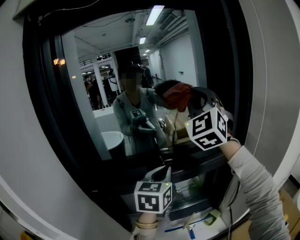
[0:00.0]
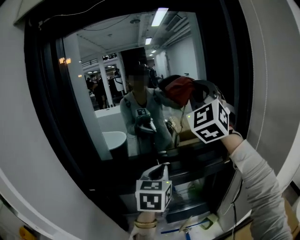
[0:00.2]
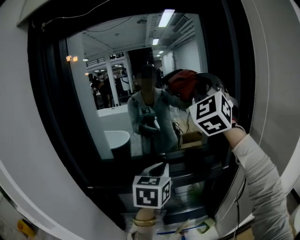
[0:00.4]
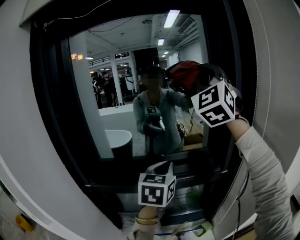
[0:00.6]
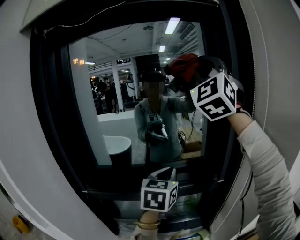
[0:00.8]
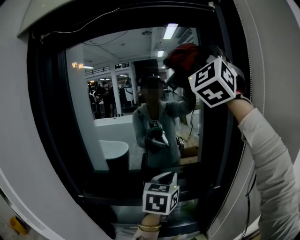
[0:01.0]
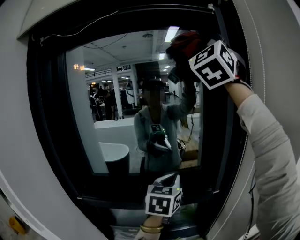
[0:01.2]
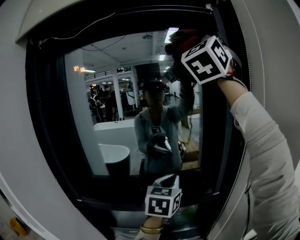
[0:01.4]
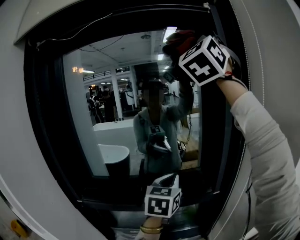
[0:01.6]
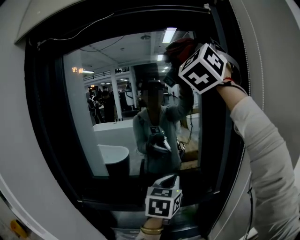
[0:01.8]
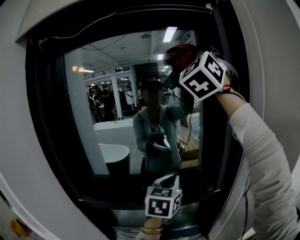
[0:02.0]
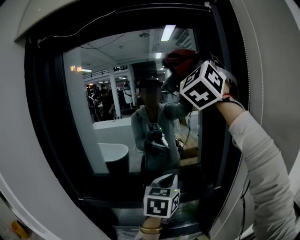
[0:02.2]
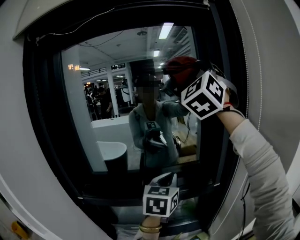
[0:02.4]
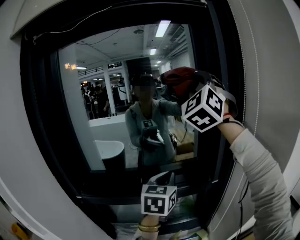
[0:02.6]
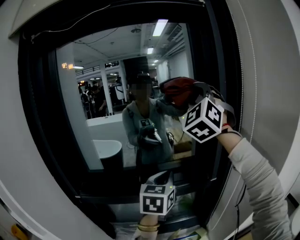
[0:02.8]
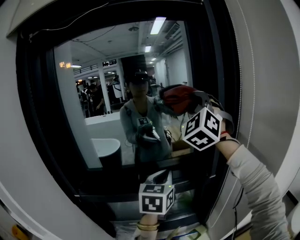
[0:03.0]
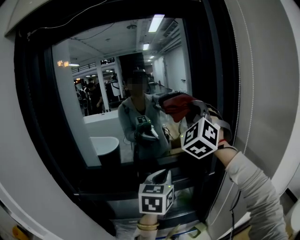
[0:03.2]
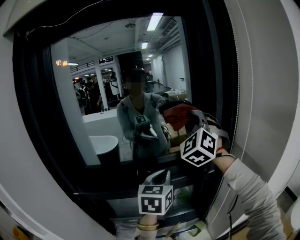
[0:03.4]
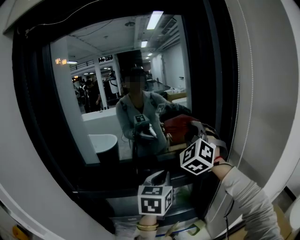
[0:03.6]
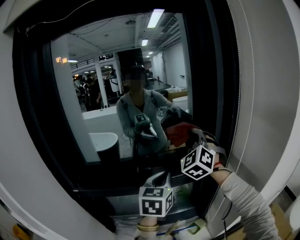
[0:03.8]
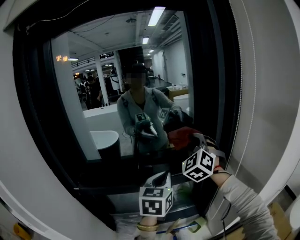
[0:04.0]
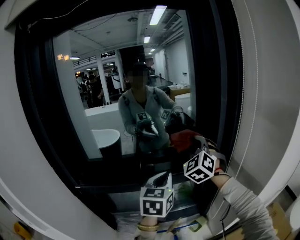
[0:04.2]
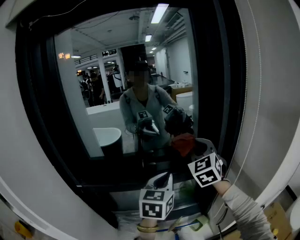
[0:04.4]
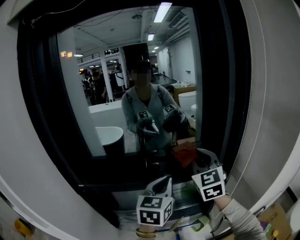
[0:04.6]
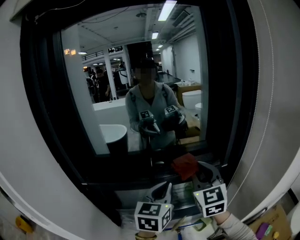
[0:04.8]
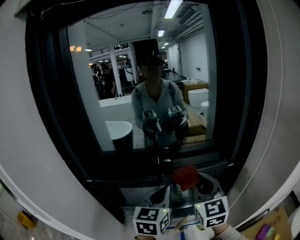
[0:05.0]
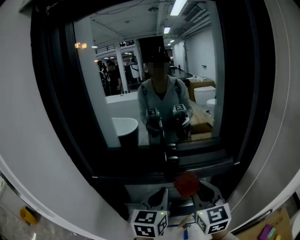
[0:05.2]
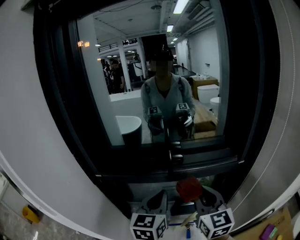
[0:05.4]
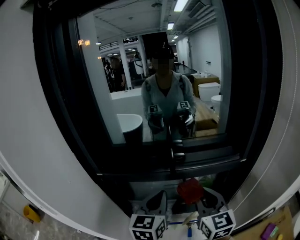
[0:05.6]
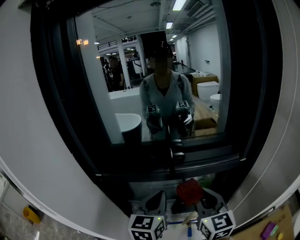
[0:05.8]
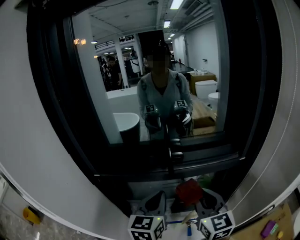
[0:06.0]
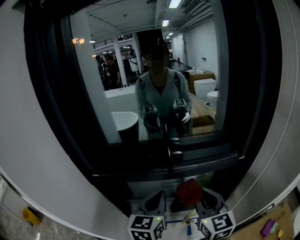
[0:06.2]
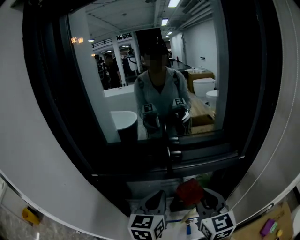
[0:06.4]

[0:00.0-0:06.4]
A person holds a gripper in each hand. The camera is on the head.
0:00.0 to 0:01.6: The left gripper heads to the right, forward and upward, covering approximately 15 cm, while the right gripper heads upward, covering some 30 cm.
0:01.6 to 0:03.2: The right gripper goes some 30 cm downward, and swivels about 30 degrees. The left gripper ends up approximately 5 cm from where it was.
0:03.2 to 0:04.8: The right gripper moves downward and backward, roughly 25 cm, and twists approximately 40 degrees clockwise, seen from behind. Meanwhile the left gripper shifts about 10 cm backward, downward and to the left.
0:04.8 to 0:06.4: The right gripper shifts about 15 cm downward, backward and to the left; the left gripper is displaced to the left and downward by about 10 cm.

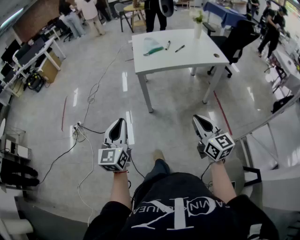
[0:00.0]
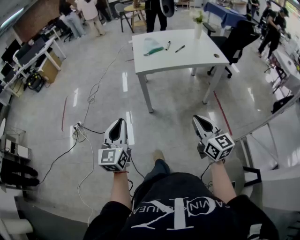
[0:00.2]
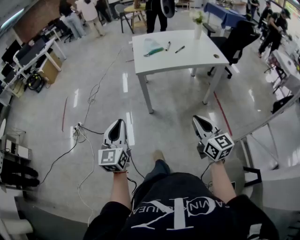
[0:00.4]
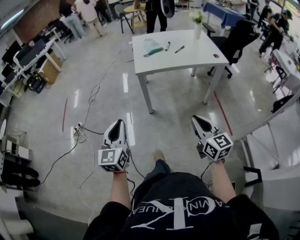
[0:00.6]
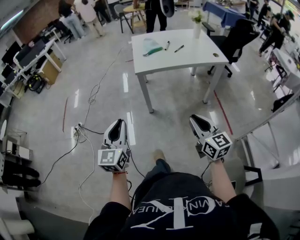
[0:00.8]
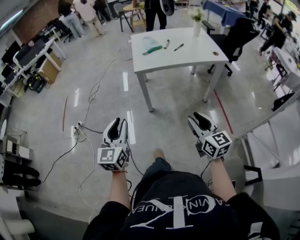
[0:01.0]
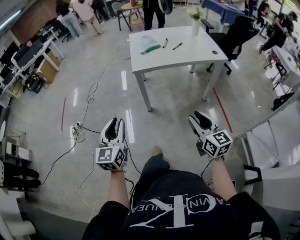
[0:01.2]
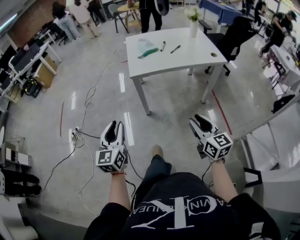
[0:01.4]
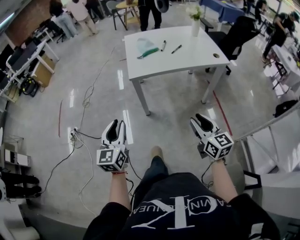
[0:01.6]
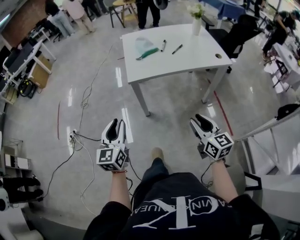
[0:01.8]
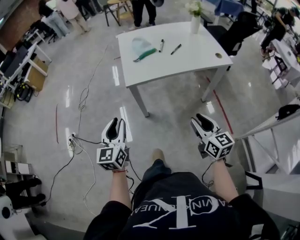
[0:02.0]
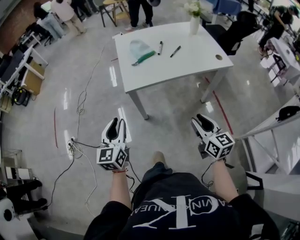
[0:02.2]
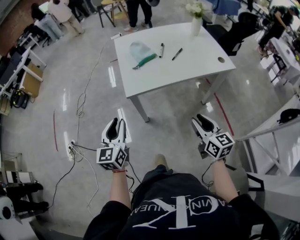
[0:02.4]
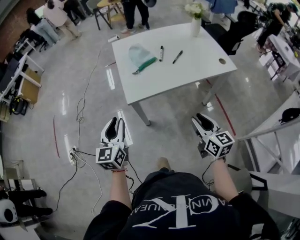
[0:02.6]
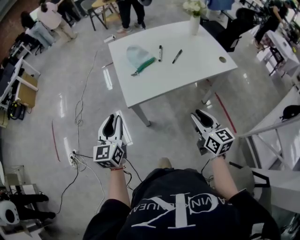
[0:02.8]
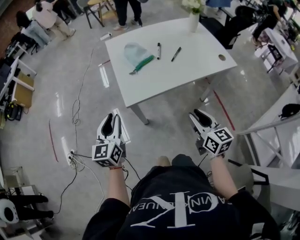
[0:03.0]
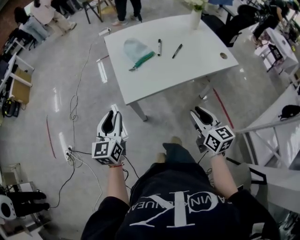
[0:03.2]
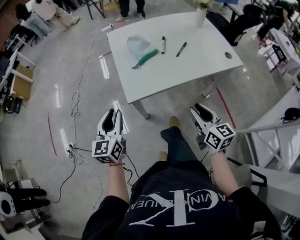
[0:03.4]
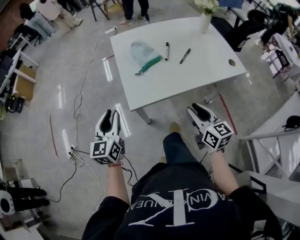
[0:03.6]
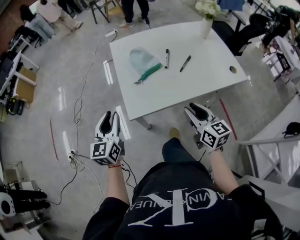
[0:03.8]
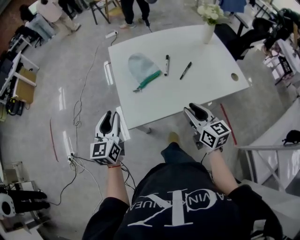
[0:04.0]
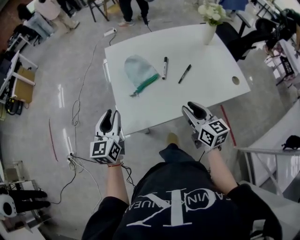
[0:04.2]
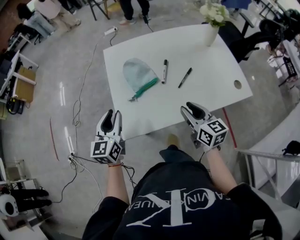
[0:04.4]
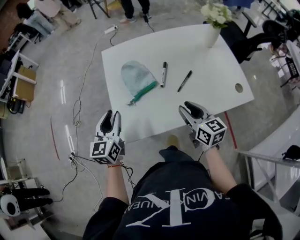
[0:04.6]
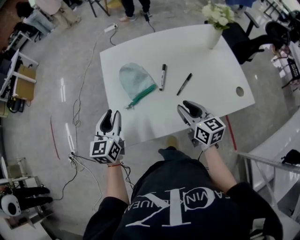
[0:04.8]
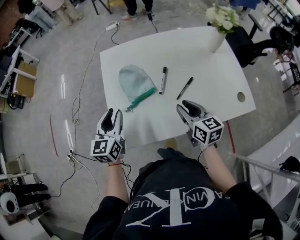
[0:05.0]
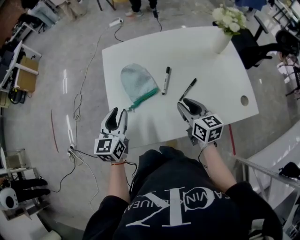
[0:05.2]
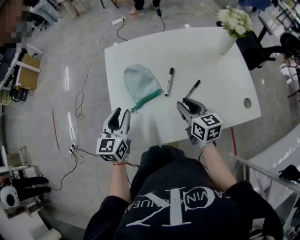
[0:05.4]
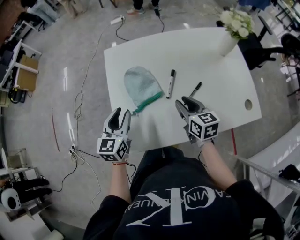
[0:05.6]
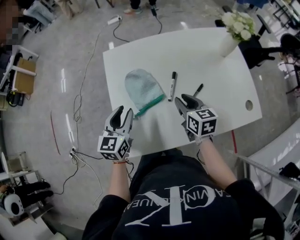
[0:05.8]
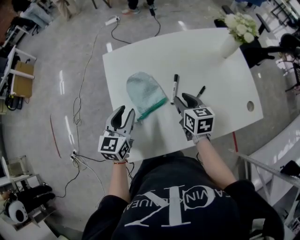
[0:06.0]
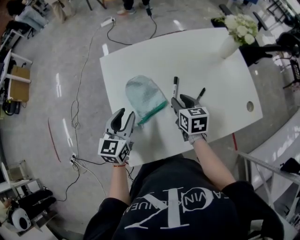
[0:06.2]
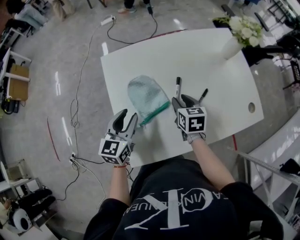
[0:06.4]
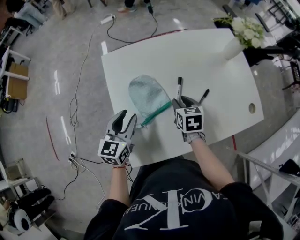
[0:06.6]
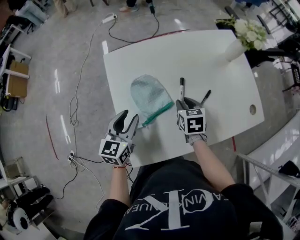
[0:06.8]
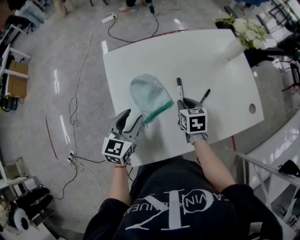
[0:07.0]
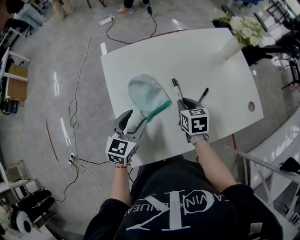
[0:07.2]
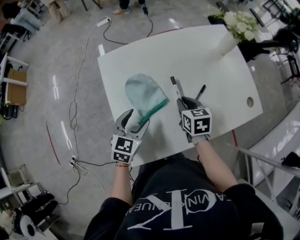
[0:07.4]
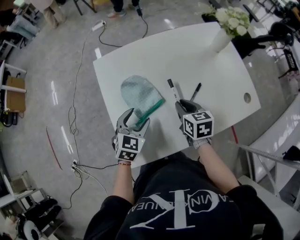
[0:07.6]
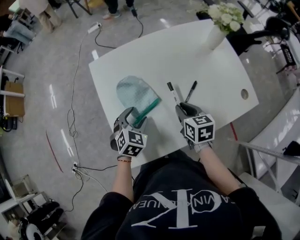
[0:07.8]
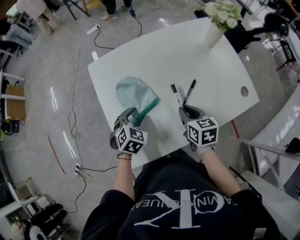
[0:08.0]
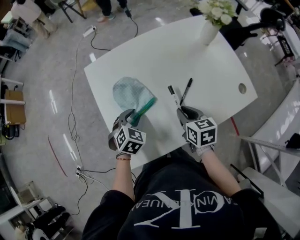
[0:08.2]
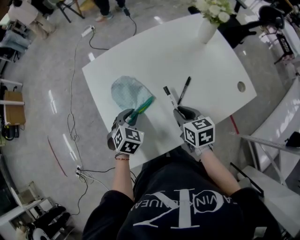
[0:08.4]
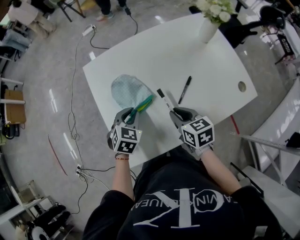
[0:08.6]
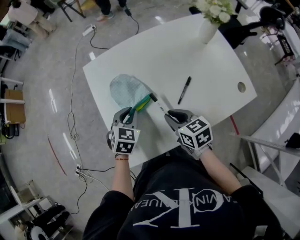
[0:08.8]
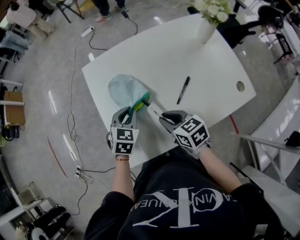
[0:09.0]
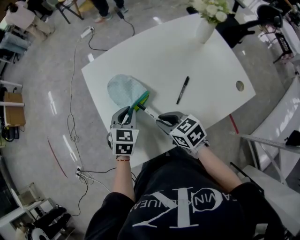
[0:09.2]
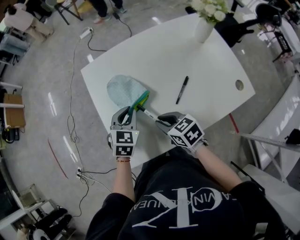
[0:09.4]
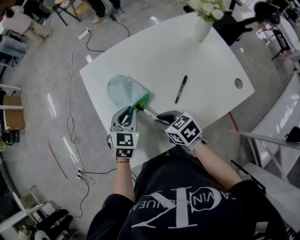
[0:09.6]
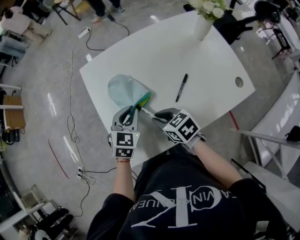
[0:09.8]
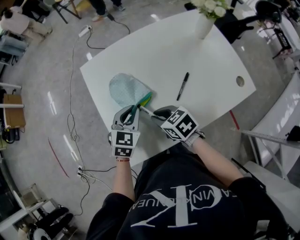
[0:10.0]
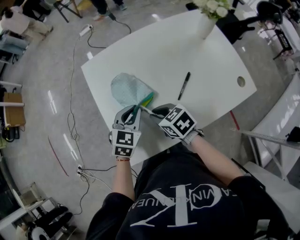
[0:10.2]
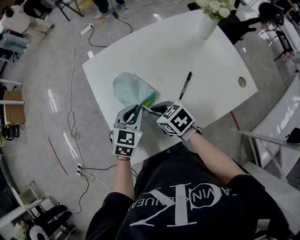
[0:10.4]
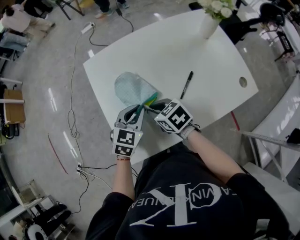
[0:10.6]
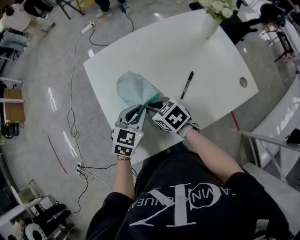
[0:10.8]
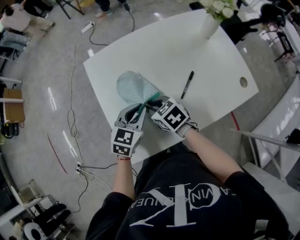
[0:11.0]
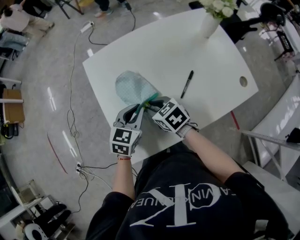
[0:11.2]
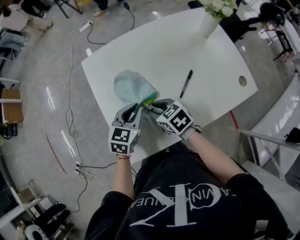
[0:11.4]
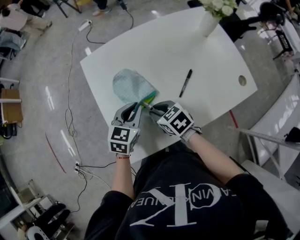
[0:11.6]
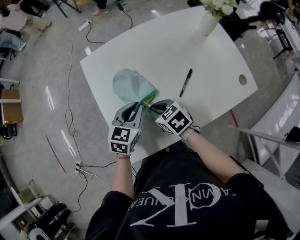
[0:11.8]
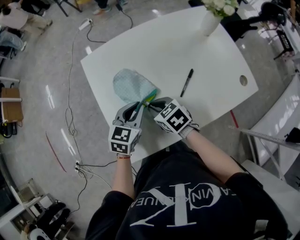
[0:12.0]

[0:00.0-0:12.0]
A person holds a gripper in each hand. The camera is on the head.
0:00.0 to 0:01.6: Both grippers travel together forward, about 10 cm. The right gripper opens its fingers.
0:01.6 to 0:03.0: Both grippers move forward, about 25 cm.
0:03.0 to 0:04.4: The two grippers go about 20 cm forward.
0:04.4 to 0:06.0: The left gripper goes some 15 cm forward and to the right. The right gripper heads forward, covering roughly 20 cm.
0:06.0 to 0:07.6: The left gripper goes about 10 cm downward and to the right, rotates roughly 30 degrees, and opens up.
0:07.6 to 0:09.0: The right gripper travels backward by about 5 cm, and rotates some 20 degrees, while the left gripper closes up.
0:09.0 to 0:10.4: The right gripper changes place by some 5 cm.
0:10.4 to 0:12.0: The grippers move only a little.

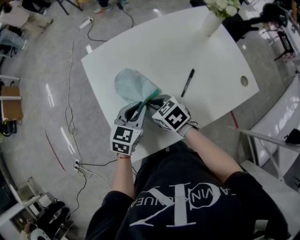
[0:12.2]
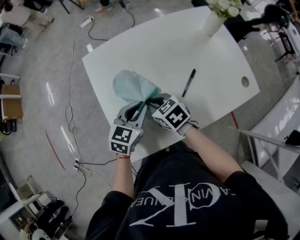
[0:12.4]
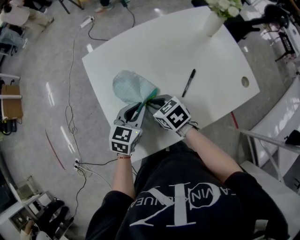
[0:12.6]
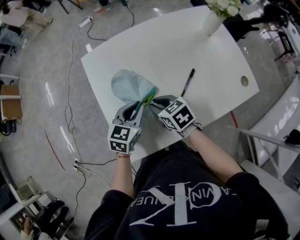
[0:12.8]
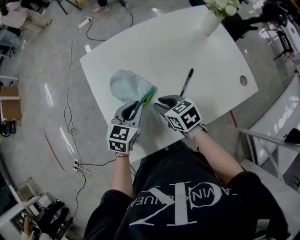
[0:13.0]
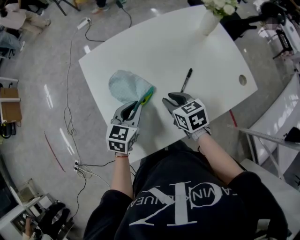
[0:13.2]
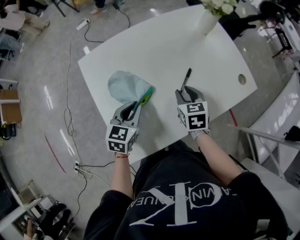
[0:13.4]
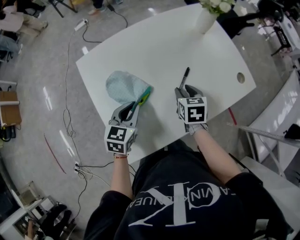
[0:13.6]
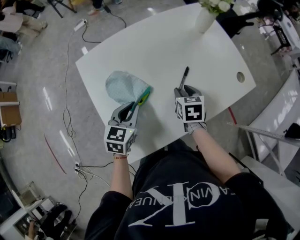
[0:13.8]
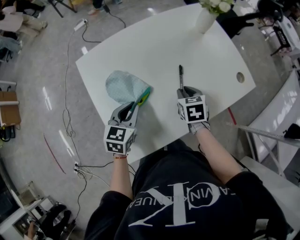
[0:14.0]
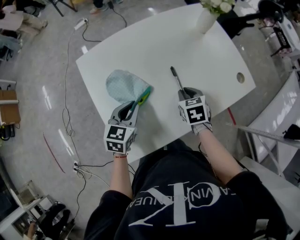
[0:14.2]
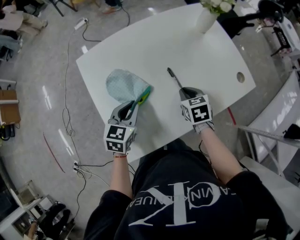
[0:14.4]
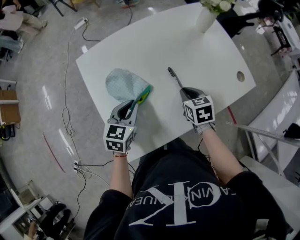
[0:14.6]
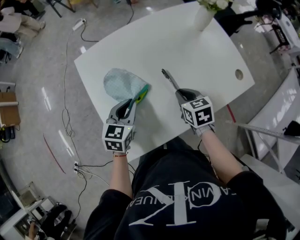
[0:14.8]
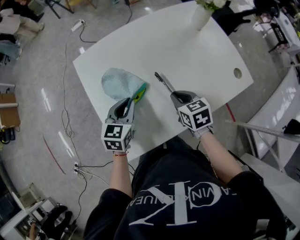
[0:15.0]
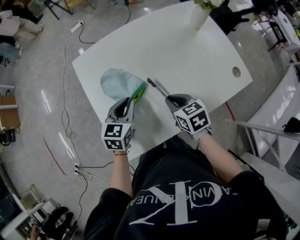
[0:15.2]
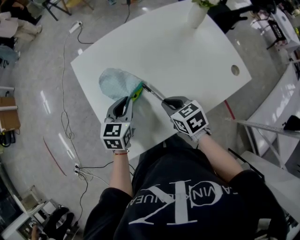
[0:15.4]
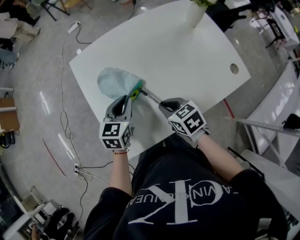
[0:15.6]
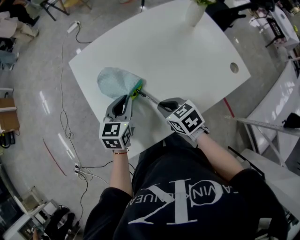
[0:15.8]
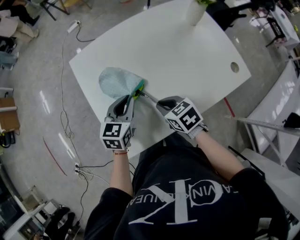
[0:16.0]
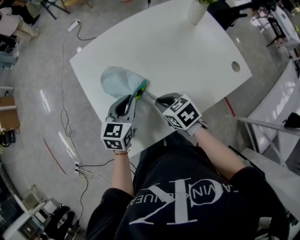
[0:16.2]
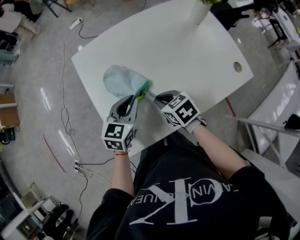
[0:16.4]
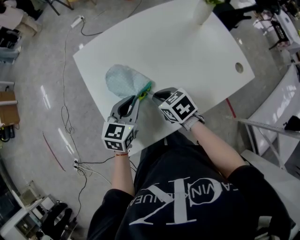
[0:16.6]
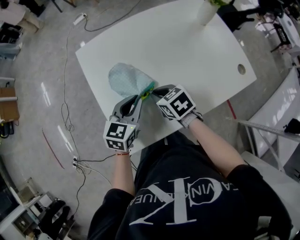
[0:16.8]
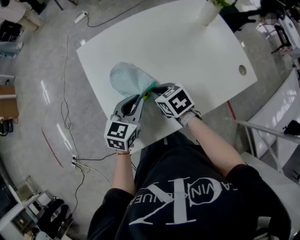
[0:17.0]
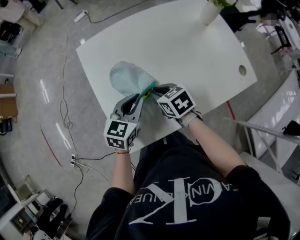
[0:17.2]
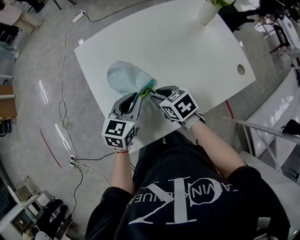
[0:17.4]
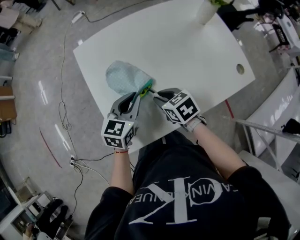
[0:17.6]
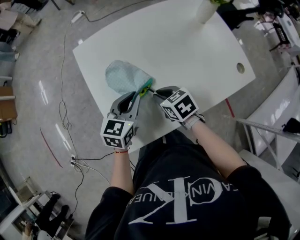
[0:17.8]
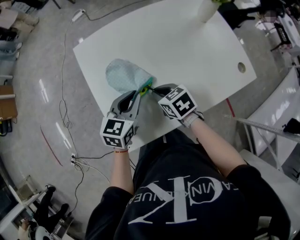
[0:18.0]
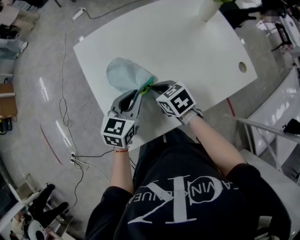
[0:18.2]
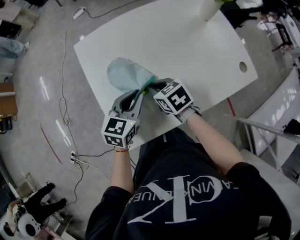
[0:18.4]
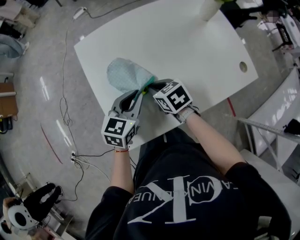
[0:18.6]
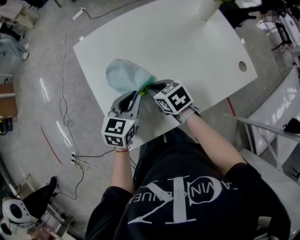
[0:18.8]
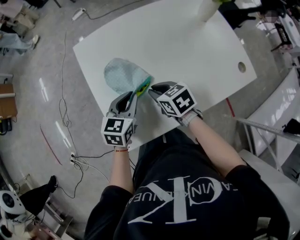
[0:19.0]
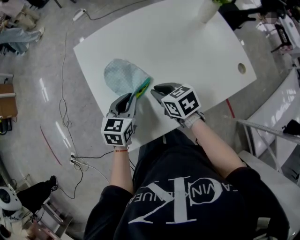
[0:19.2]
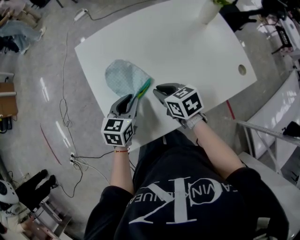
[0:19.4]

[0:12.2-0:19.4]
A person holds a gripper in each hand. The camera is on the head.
0:12.2 to 0:13.6: The right gripper ends up about 20 cm from where it was, rotates some 40 degrees, and opens.
0:13.6 to 0:15.0: The right gripper changes place by roughly 5 cm, and closes its fingers.
0:15.0 to 0:16.6: The right gripper travels to the left by roughly 10 cm.
0:16.6 to 0:19.4: The grippers move only a little.
